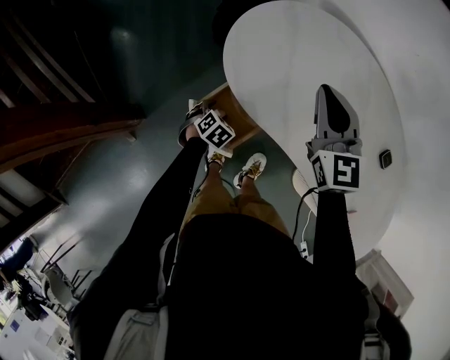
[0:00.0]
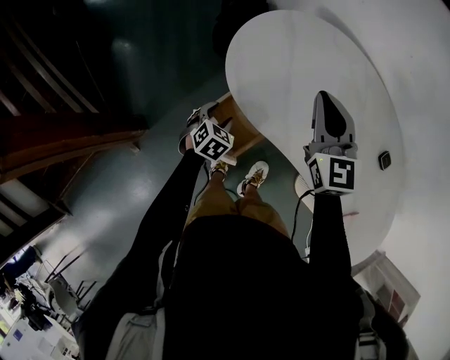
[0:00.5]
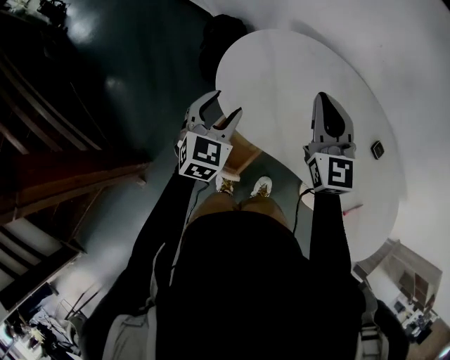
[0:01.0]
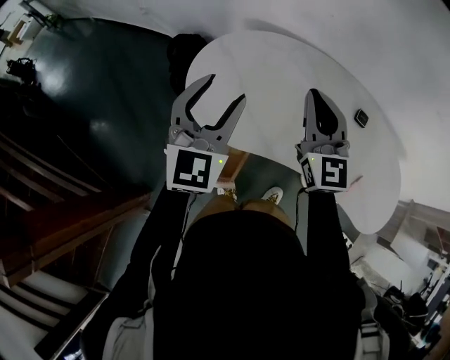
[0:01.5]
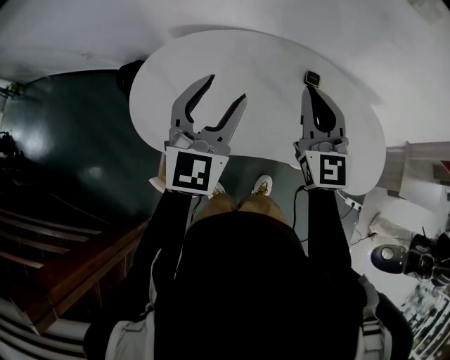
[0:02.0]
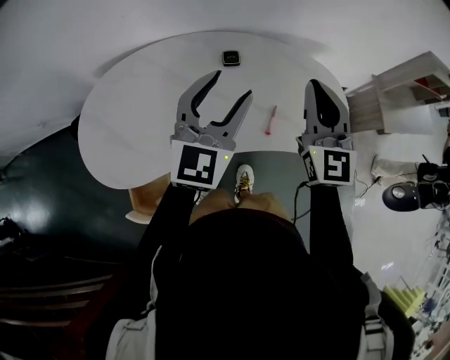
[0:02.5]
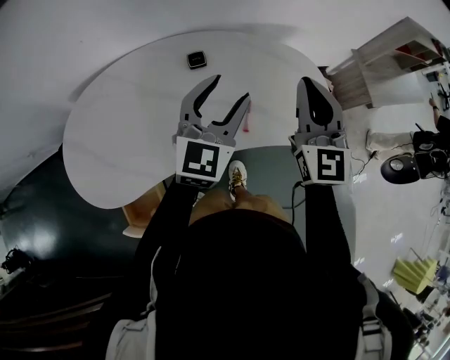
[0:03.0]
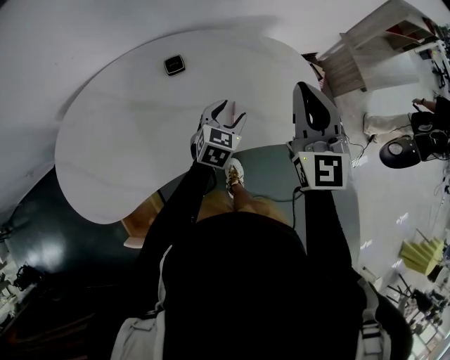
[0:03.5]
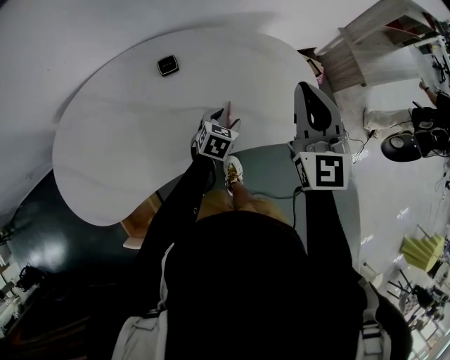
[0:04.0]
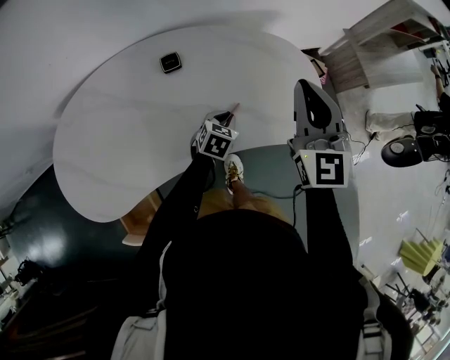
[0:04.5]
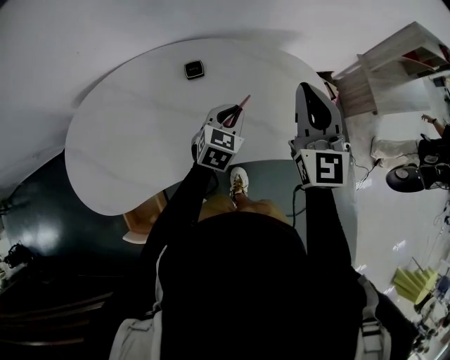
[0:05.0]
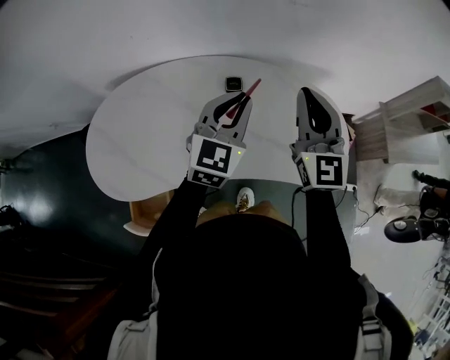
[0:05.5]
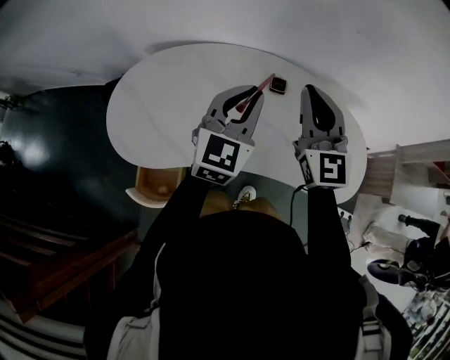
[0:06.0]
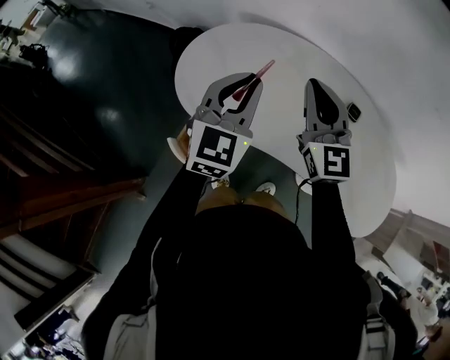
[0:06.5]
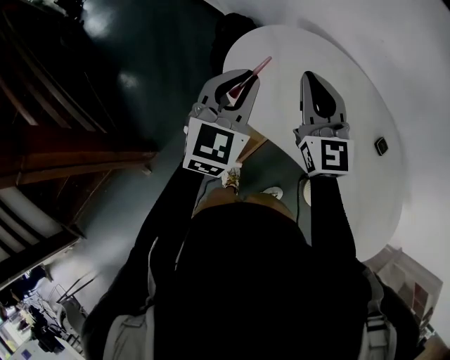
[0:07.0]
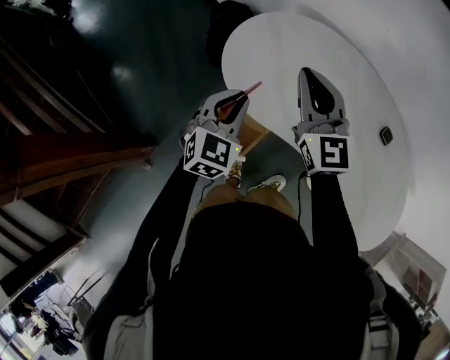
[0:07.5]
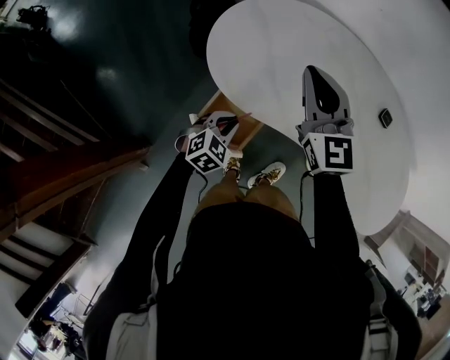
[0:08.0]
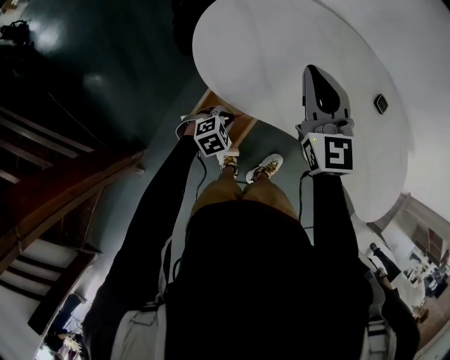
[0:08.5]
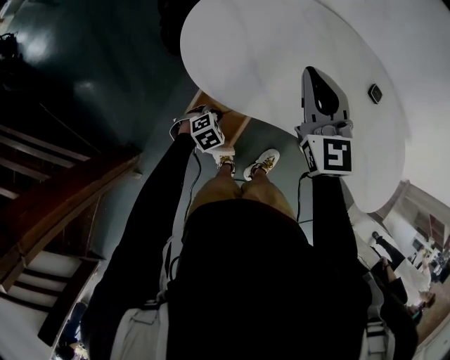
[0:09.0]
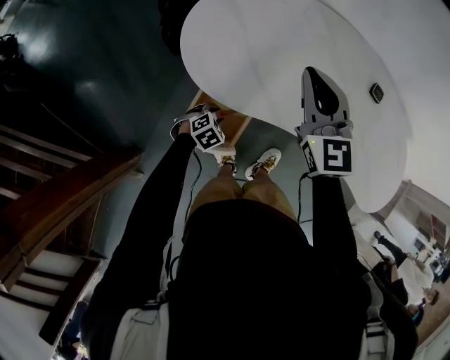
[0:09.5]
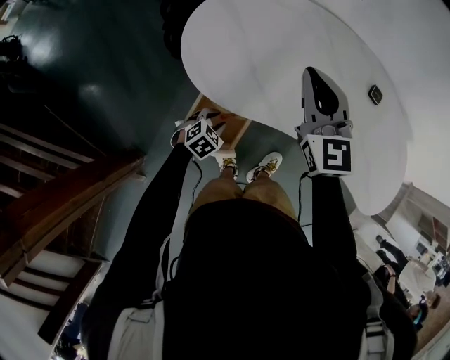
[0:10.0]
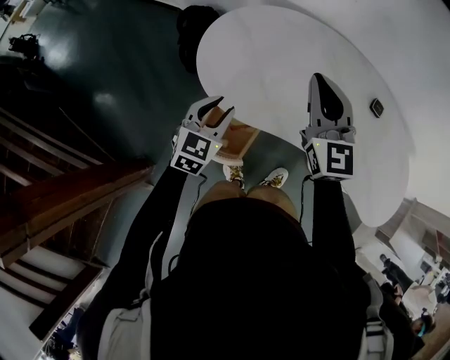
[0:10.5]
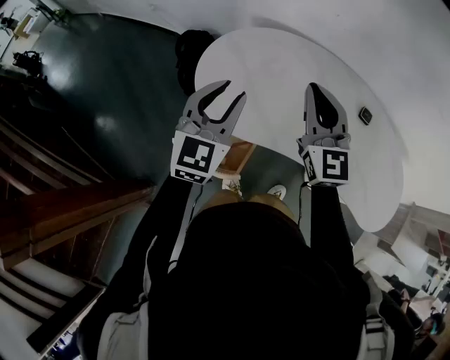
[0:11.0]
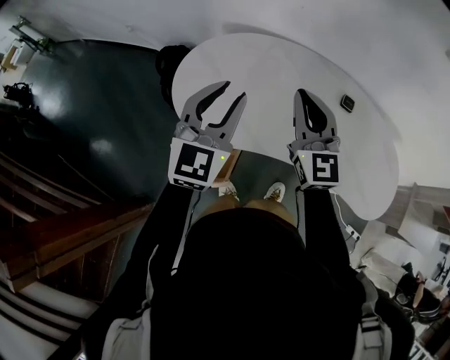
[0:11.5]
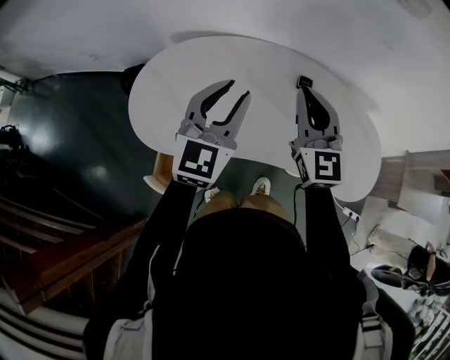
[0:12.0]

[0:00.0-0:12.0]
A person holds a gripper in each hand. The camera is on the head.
0:00.0 to 0:02.0: The right gripper shifts by some 30 cm, and rotates roughly 40 degrees. The left gripper moves upward, approximately 50 cm, and angles its fingers upward, by about 70 degrees.
0:02.0 to 0:04.0: The left gripper moves about 50 cm, and tips its fingers downward by roughly 50 degrees; the right gripper ends up about 35 cm from where it was, and swivels roughly 30 degrees.
0:04.0 to 0:06.0: The right gripper moves about 25 cm, and swivels some 30 degrees, while the left gripper shifts about 35 cm upward, tilts its fingers approximately 40 degrees upward, and closes up.
0:06.0 to 0:08.0: The right gripper shifts by some 40 cm, and rotates roughly 30 degrees. Meanwhile the left gripper shifts by roughly 50 cm, and angles its fingers downward, by about 40 degrees.
0:08.0 to 0:10.0: The left gripper travels downward by some 10 cm.
0:10.0 to 0:12.0: The left gripper is displaced upward and to the right by approximately 50 cm, and points its fingers approximately 50 degrees further upward; the right gripper moves to the right, roughly 25 cm, and turns by approximately 20 degrees.

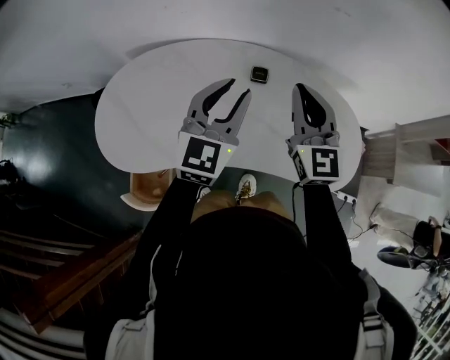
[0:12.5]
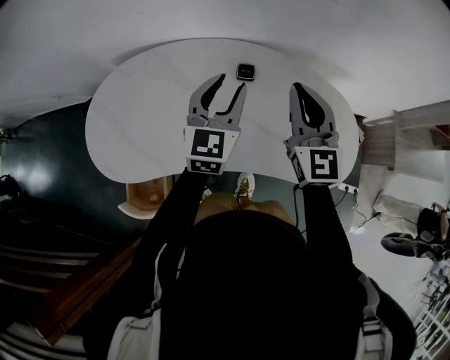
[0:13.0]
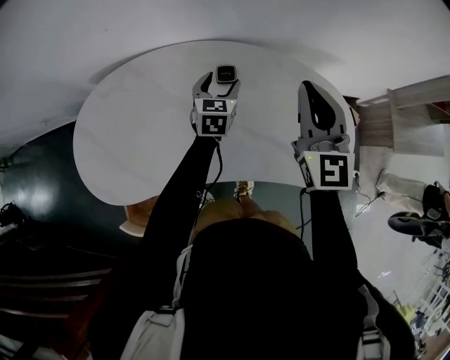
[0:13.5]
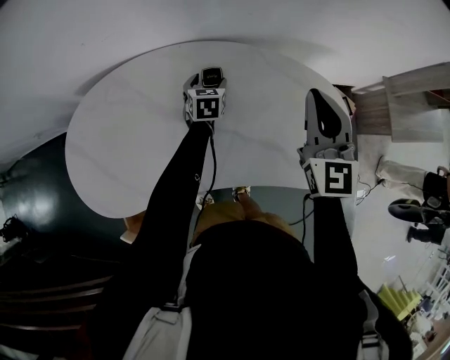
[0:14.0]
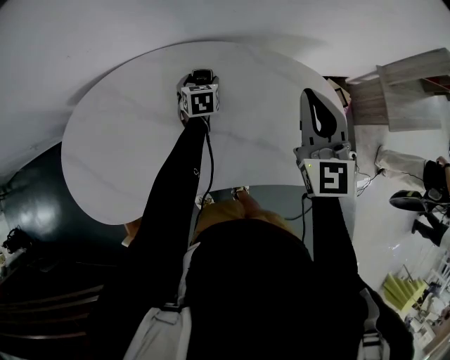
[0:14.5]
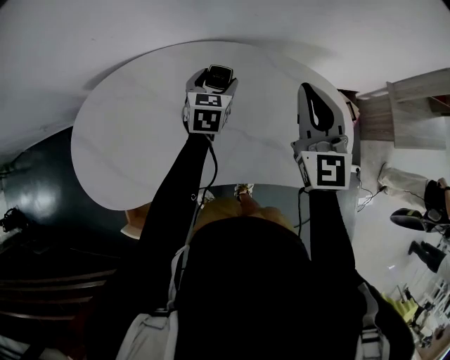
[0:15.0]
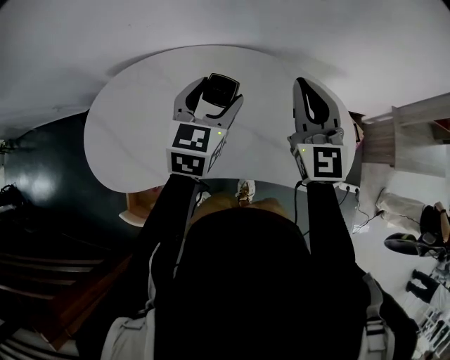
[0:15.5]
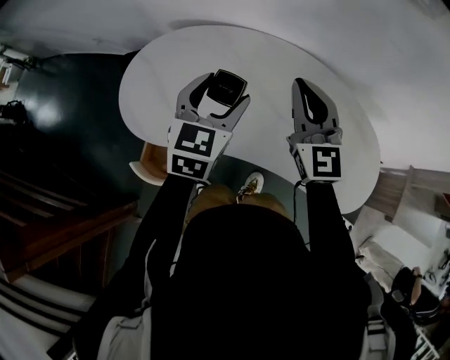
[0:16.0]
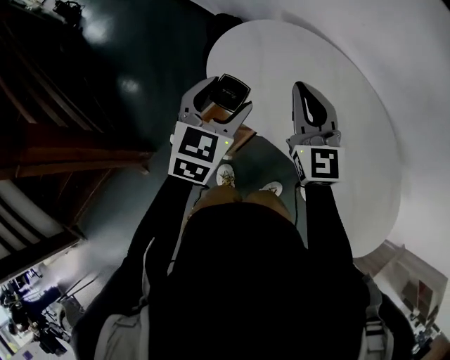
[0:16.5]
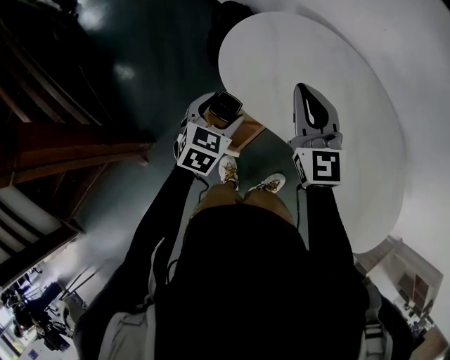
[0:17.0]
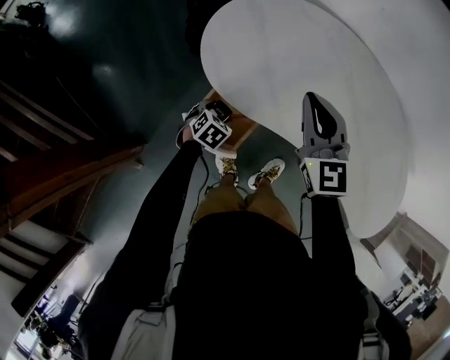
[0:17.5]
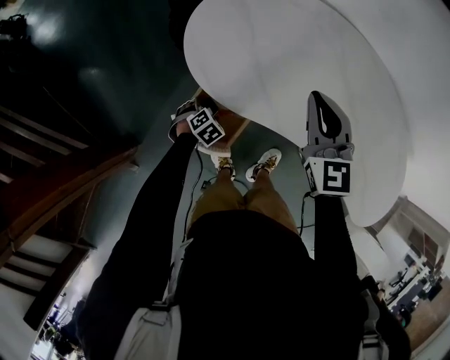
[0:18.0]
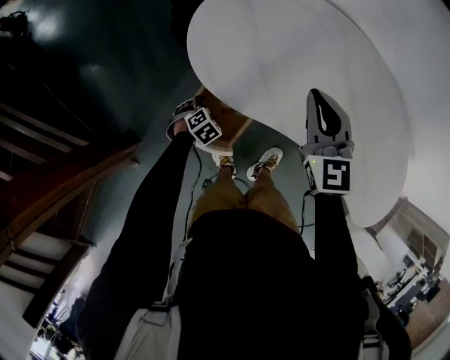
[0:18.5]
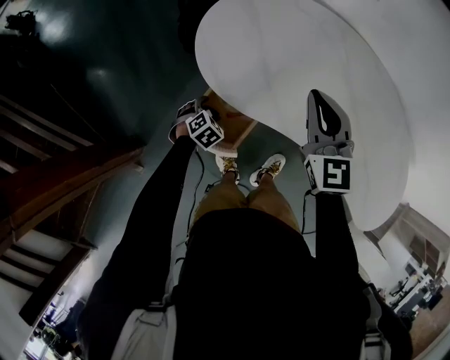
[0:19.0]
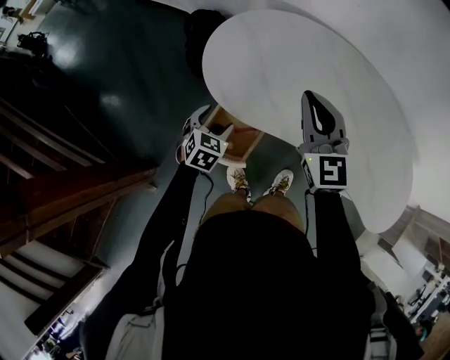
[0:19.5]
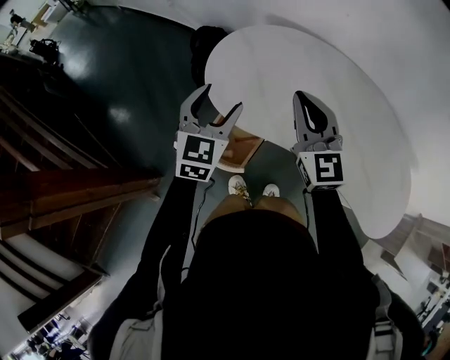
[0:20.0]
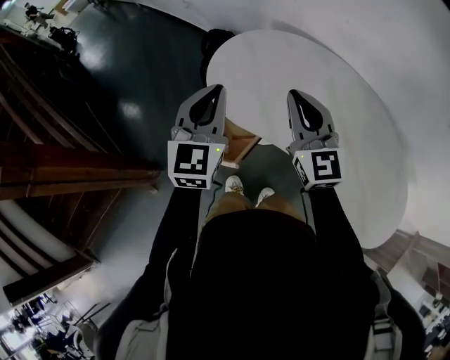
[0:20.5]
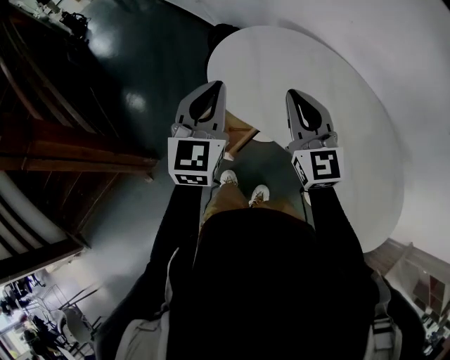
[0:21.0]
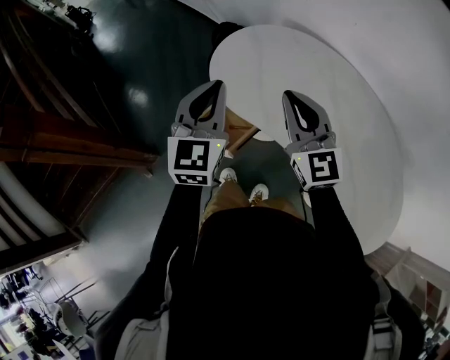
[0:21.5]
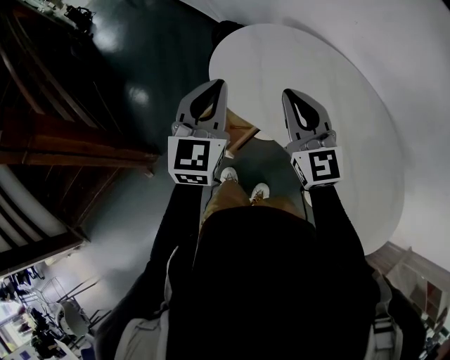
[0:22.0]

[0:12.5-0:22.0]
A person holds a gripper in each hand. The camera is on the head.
0:12.5 to 0:14.5: The left gripper travels downward and forward by approximately 40 cm, tips its fingers downward by some 40 degrees, and opens up; the right gripper heads to the right and downward, covering approximately 15 cm.
0:14.5 to 0:16.5: The pair of grippers is taken approximately 50 cm. The right gripper changes its angle by approximately 60 degrees. The left gripper swivels approximately 40 degrees.
0:16.5 to 0:18.0: The right gripper moves downward, approximately 10 cm, and swivels roughly 20 degrees. Meanwhile the left gripper heads downward, covering some 40 cm, and angles its fingers downward, by about 50 degrees.
0:18.0 to 0:20.0: The left gripper shifts some 40 cm upward, and points its fingers about 60 degrees further upward. The right gripper heads upward, covering approximately 10 cm.
0:20.0 to 0:22.0: The right gripper moves backward, some 5 cm; the left gripper shifts about 10 cm upward and backward, turns by about 20 degrees, and closes up.

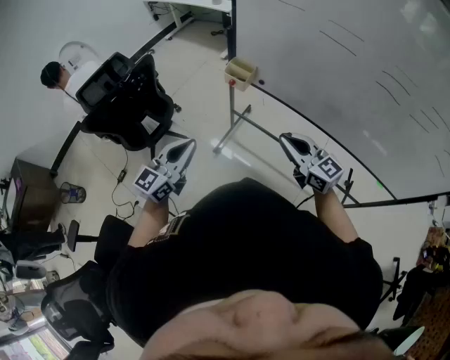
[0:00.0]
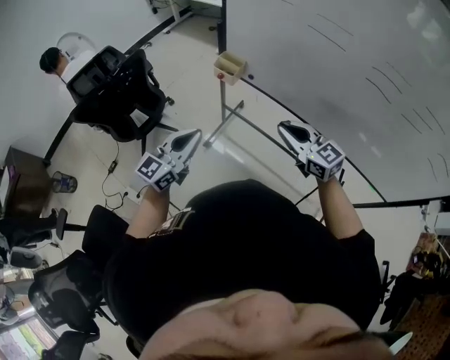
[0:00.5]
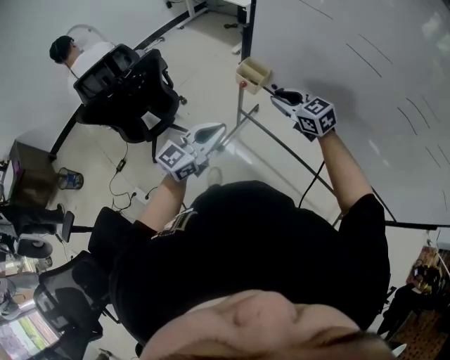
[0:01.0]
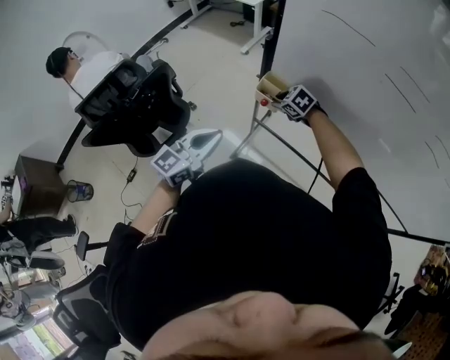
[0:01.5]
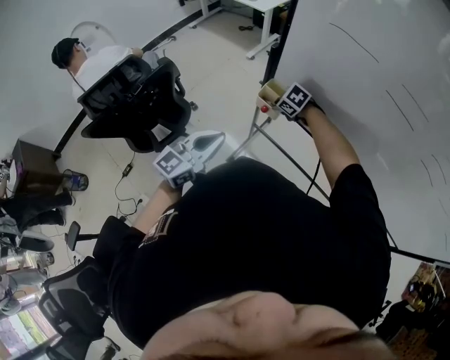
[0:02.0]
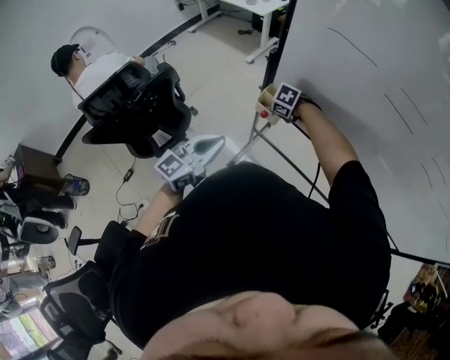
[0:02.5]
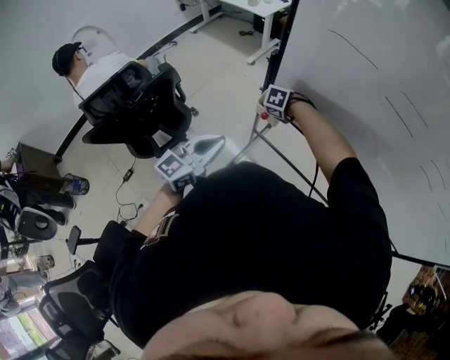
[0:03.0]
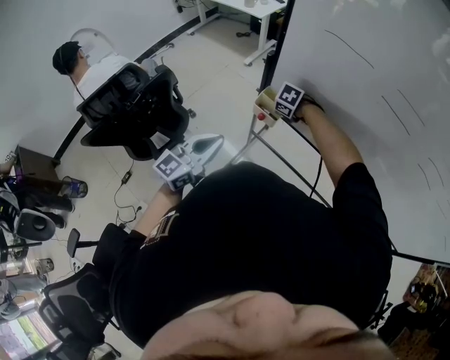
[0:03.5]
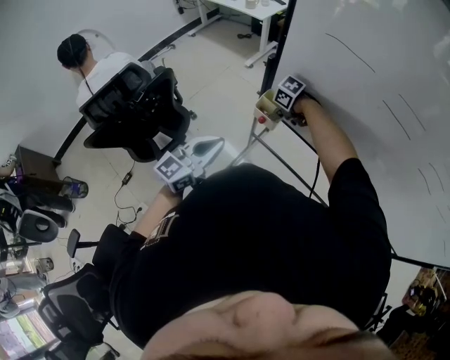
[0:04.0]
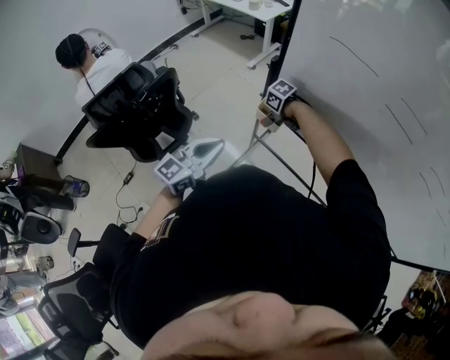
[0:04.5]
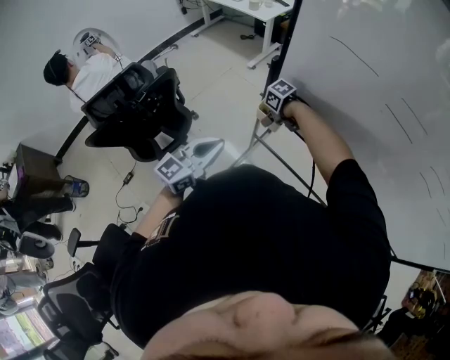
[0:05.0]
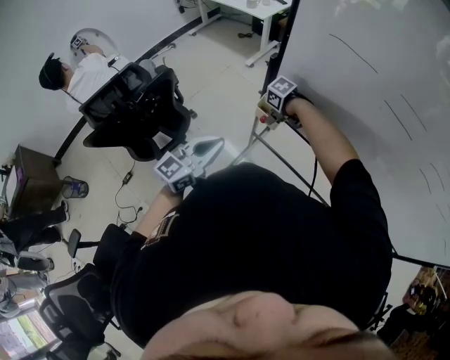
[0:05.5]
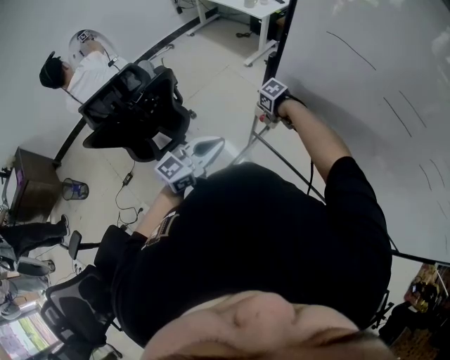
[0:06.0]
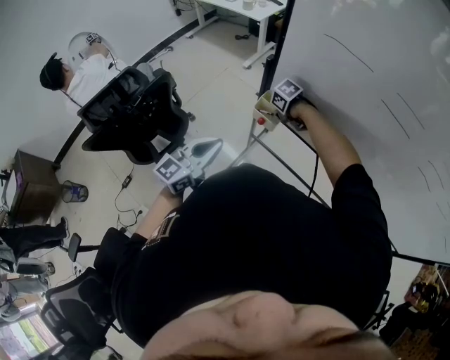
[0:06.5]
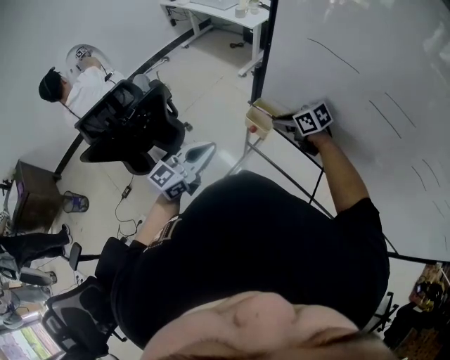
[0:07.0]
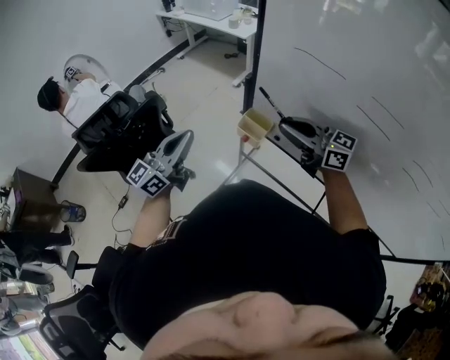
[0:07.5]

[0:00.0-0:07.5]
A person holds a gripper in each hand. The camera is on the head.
0:00.0 to 0:02.0: The left gripper heads forward, covering roughly 20 cm; the right gripper travels forward and downward by approximately 40 cm, and angles its fingers downward, by roughly 60 degrees.
0:02.0 to 0:04.0: The right gripper swivels roughly 20 degrees.
0:04.0 to 0:05.5: The right gripper opens its fingers.
0:05.5 to 0:07.5: The left gripper travels upward by approximately 10 cm. Meanwhile the right gripper moves upward, about 30 cm, tilts its fingers roughly 80 degrees upward, and closes up.
